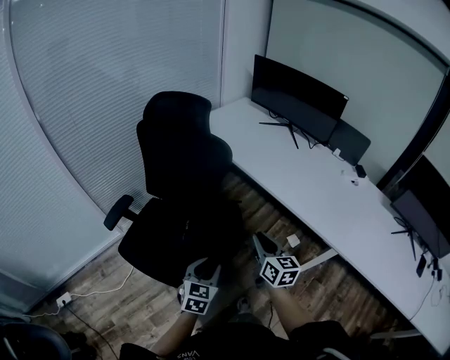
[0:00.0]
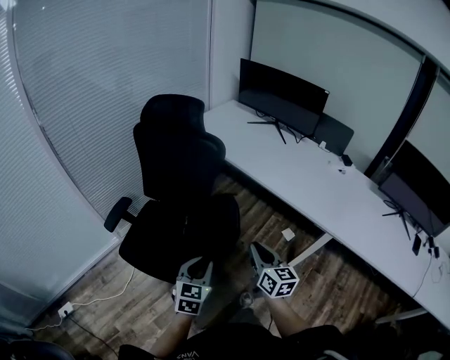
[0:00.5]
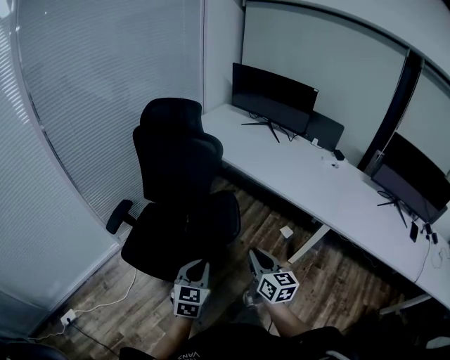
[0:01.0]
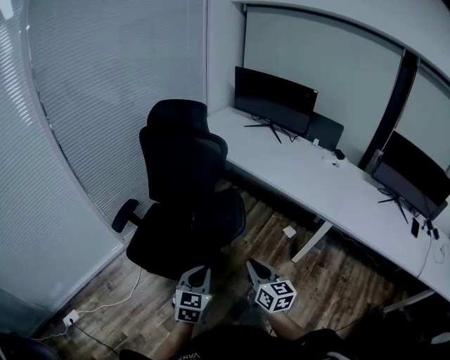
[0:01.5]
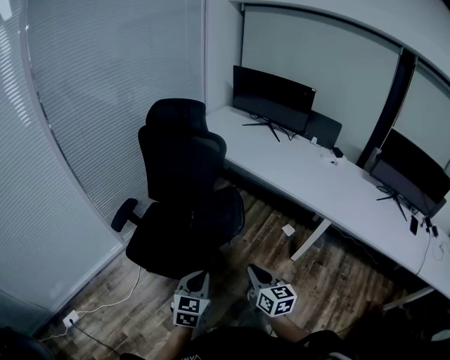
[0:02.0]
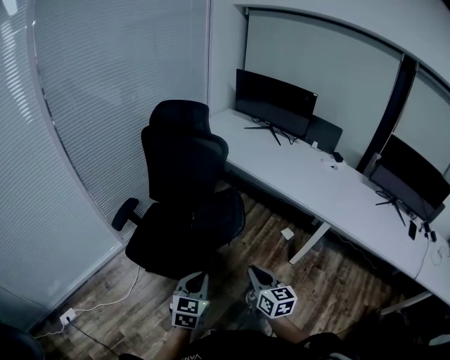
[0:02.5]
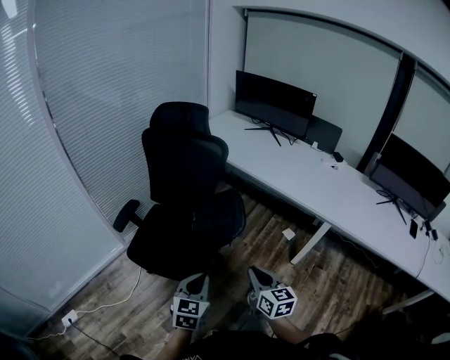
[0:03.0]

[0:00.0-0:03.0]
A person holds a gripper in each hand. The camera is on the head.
0:00.0 to 0:01.5: The left gripper heads backward and to the left, covering approximately 20 cm, and closes its fingers, while the right gripper heads backward, covering roughly 25 cm.
0:01.5 to 0:03.0: There are only small adjustments of the grippers.

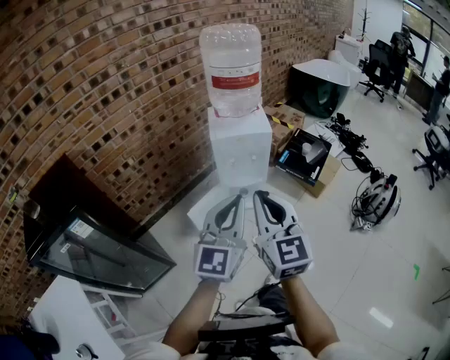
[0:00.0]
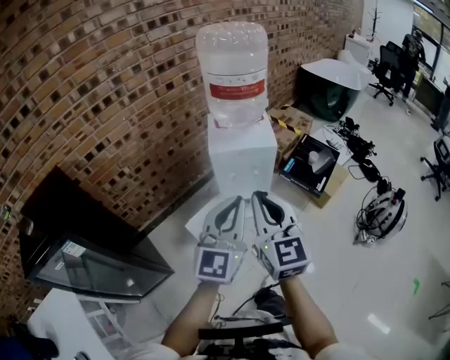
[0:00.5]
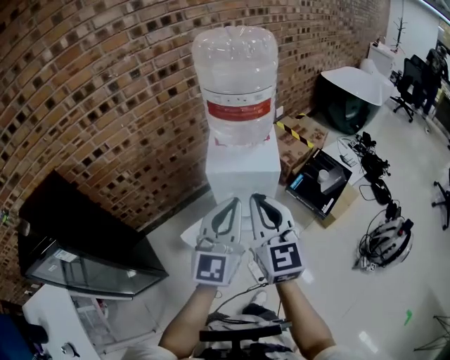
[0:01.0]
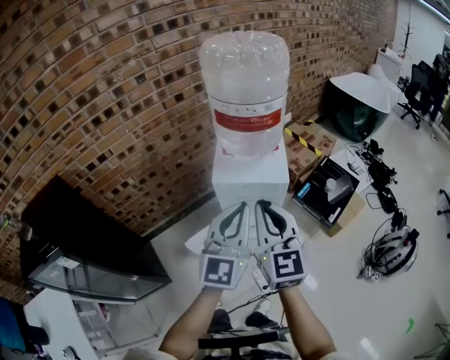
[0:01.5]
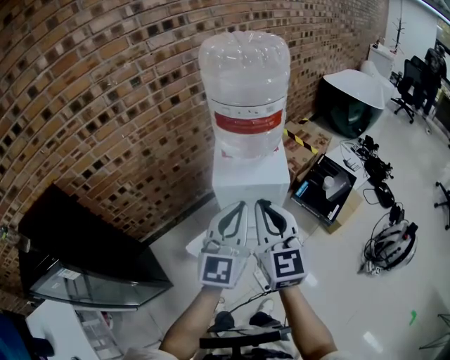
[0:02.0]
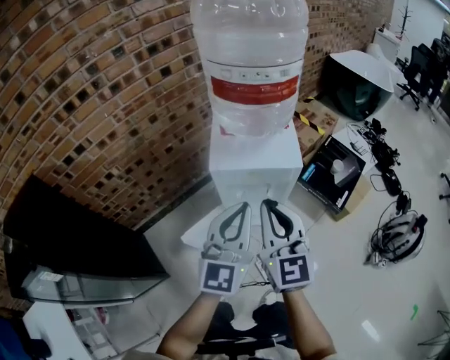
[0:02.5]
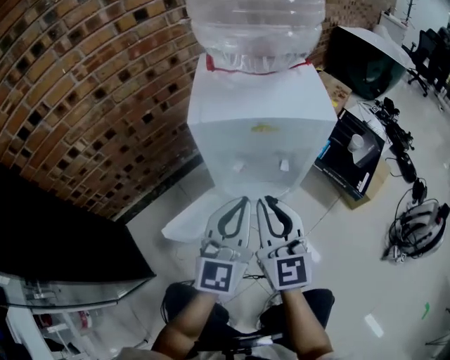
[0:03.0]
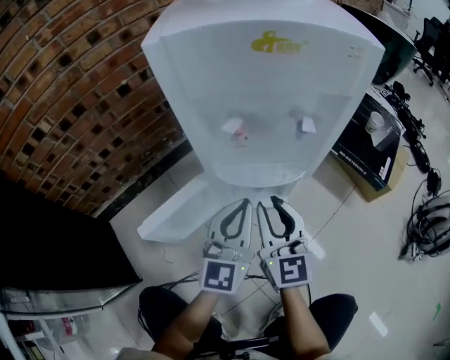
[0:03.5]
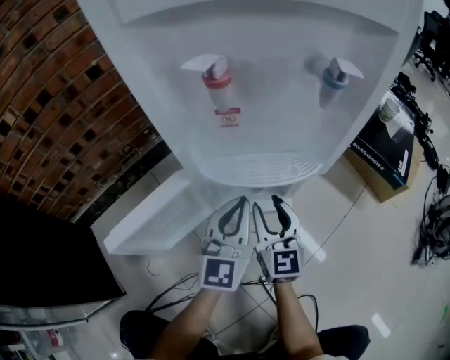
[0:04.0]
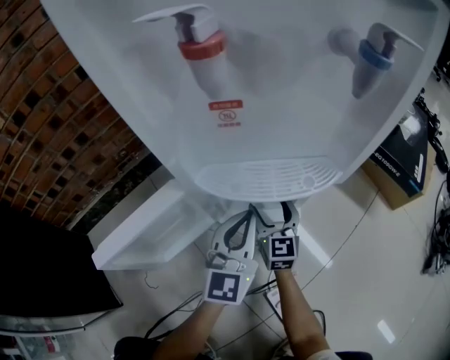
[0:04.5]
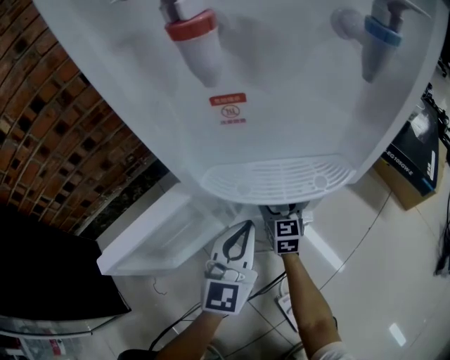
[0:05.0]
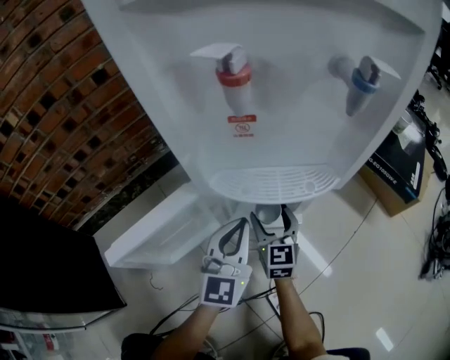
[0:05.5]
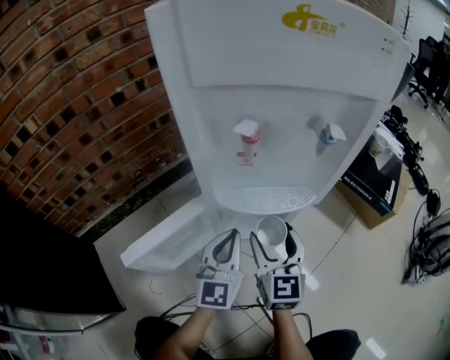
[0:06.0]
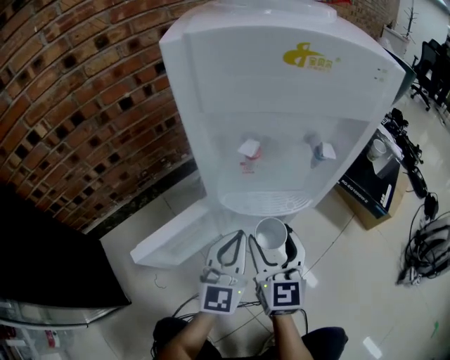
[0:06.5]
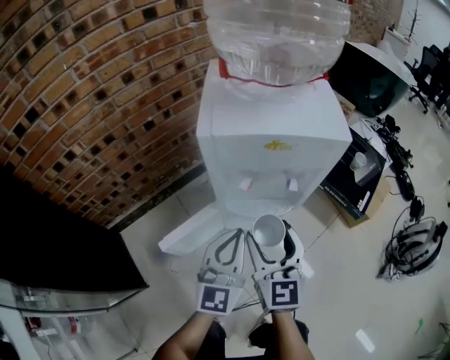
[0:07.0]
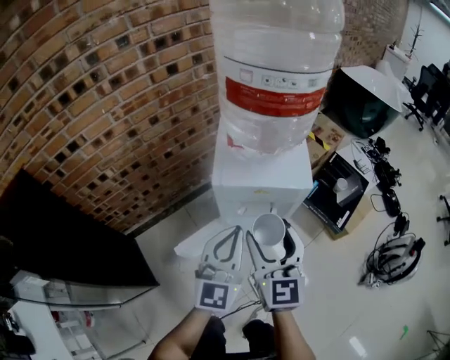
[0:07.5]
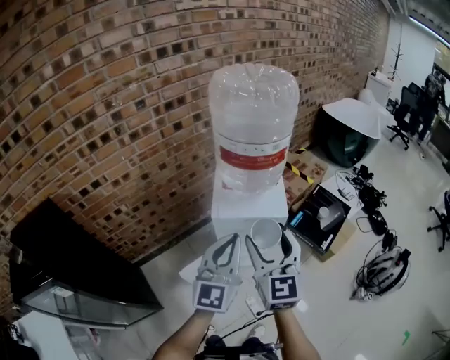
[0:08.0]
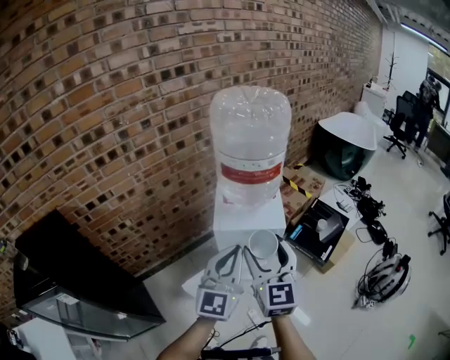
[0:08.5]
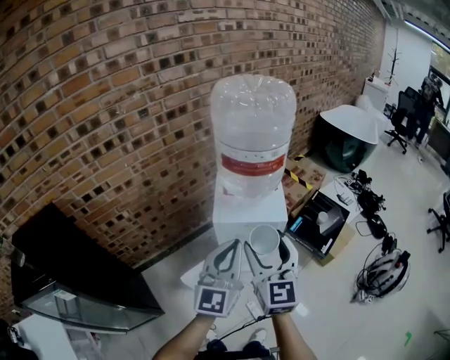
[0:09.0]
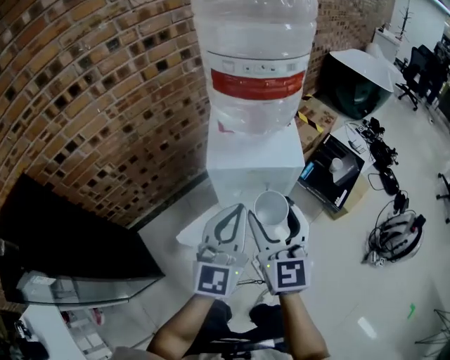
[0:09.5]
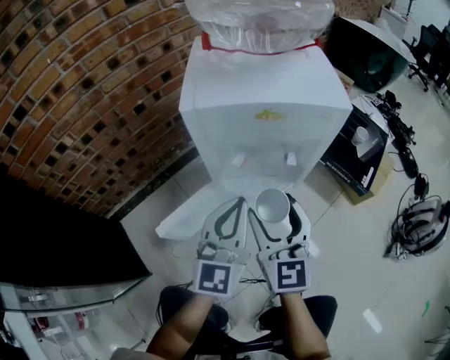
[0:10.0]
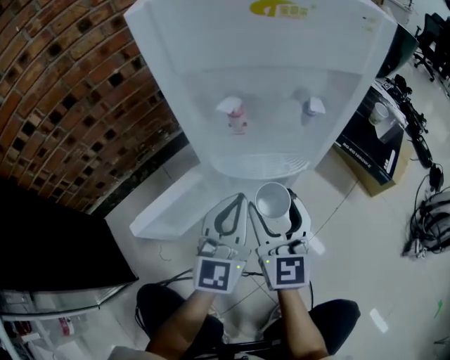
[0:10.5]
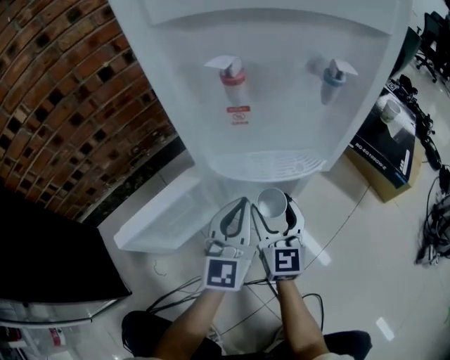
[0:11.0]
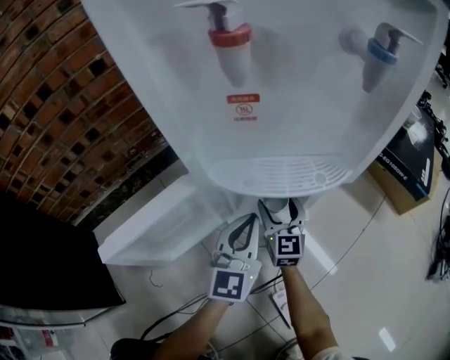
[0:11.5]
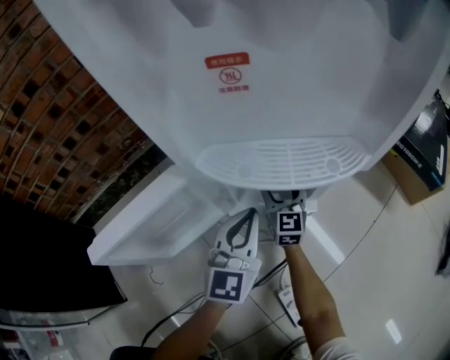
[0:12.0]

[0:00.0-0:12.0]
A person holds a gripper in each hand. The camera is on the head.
0:00.0 to 0:02.0: Both grippers travel together forward, roughly 25 cm.
0:02.0 to 0:04.0: The two grippers go some 70 cm downward. The right gripper opens up.
0:04.0 to 0:06.0: The left gripper reaches roughly 10 cm downward, then returns; the right gripper travels downward and back again, about 15 cm each way, and opens.
0:06.0 to 0:08.0: Both grippers travel together upward, roughly 60 cm.
0:08.0 to 0:10.0: The two grippers go some 35 cm downward.
0:10.0 to 0:12.0: The right gripper is displaced downward and forward by about 50 cm, while the left gripper is displaced downward by some 40 cm.

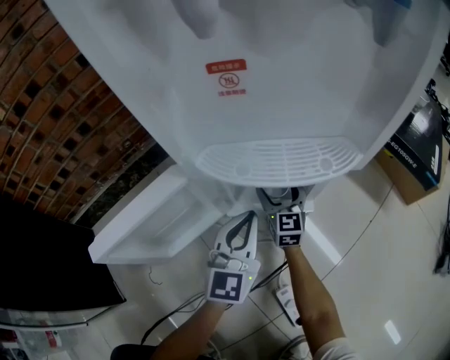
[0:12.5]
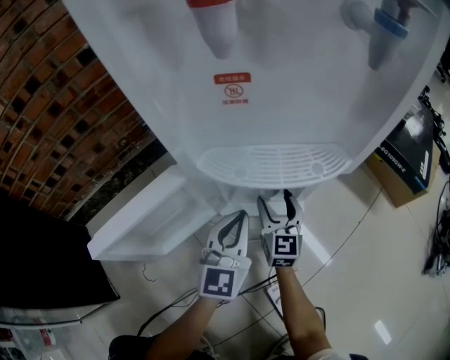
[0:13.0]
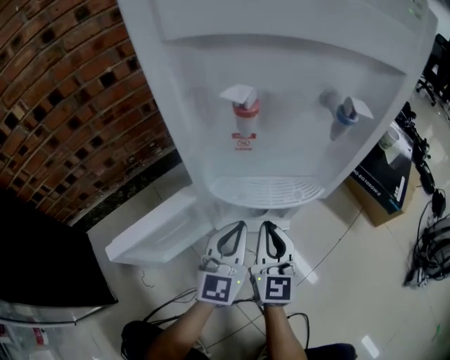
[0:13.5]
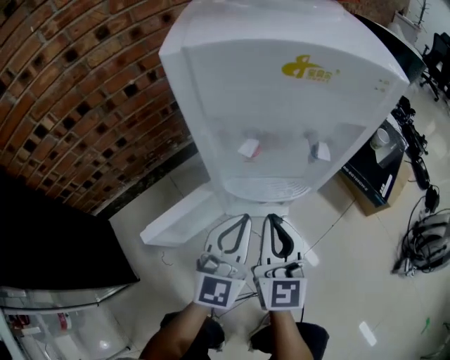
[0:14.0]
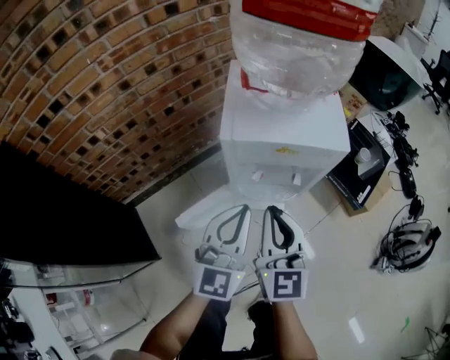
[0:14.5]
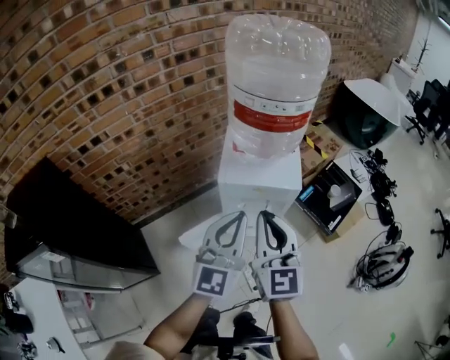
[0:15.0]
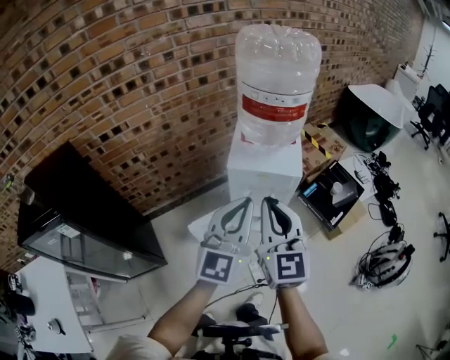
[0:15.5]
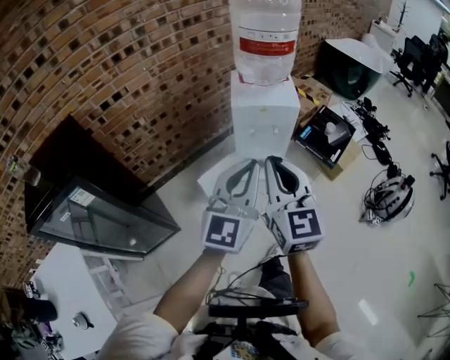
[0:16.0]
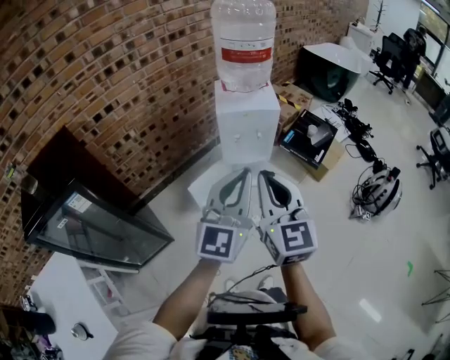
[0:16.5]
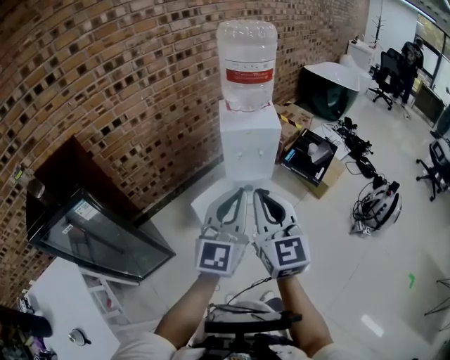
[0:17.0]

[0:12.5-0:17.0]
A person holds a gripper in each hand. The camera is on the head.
0:12.5 to 0:14.5: The grippers both shift upward by roughly 60 cm. The right gripper closes its fingers.
0:14.5 to 0:17.0: Both grippers travel together backward and upward, some 40 cm.

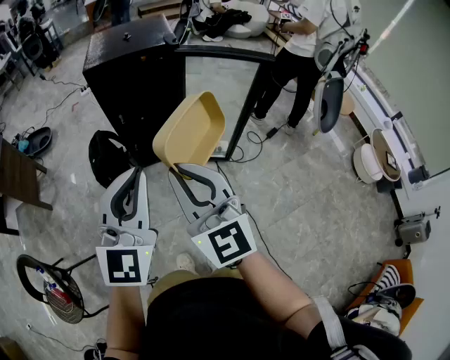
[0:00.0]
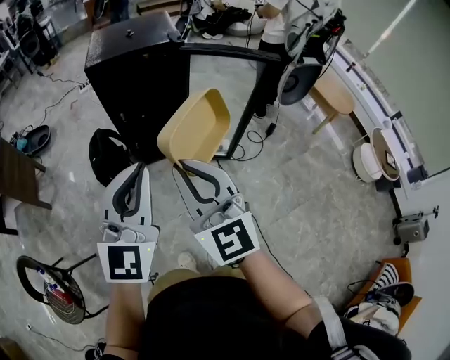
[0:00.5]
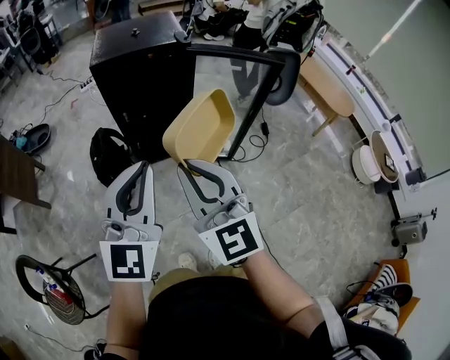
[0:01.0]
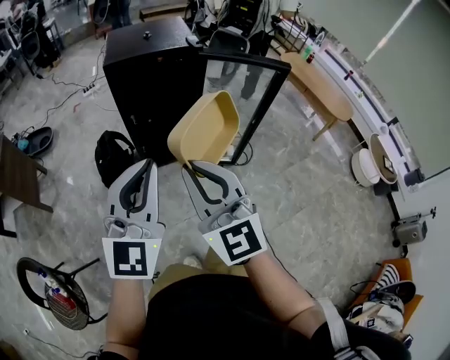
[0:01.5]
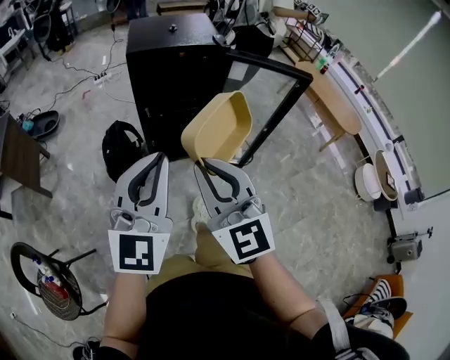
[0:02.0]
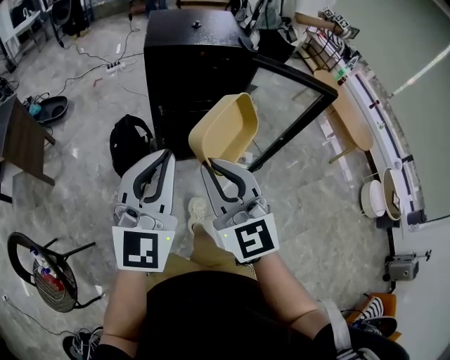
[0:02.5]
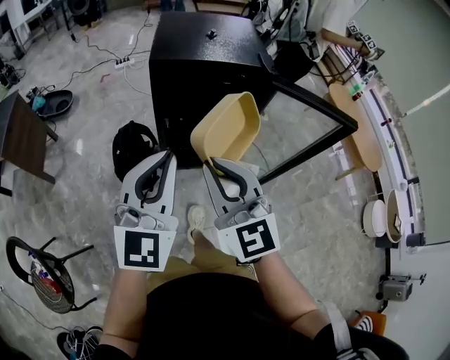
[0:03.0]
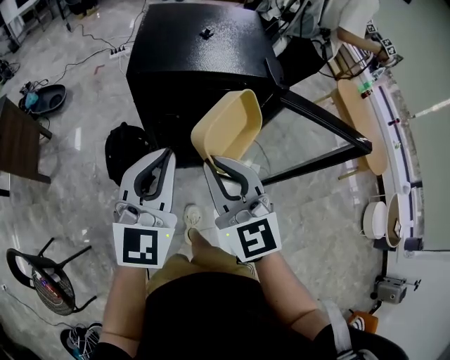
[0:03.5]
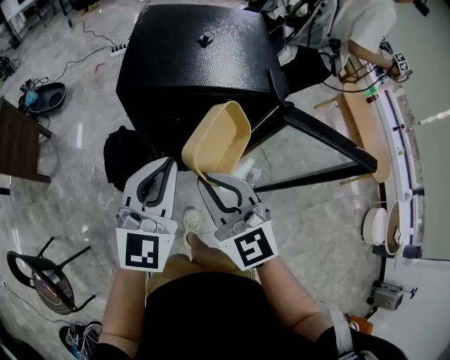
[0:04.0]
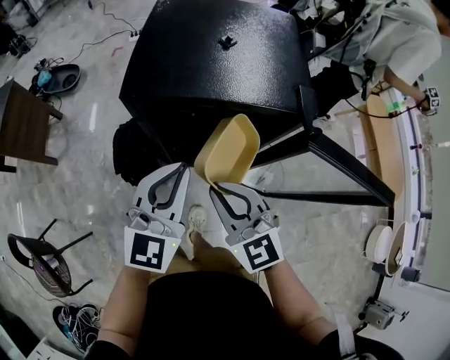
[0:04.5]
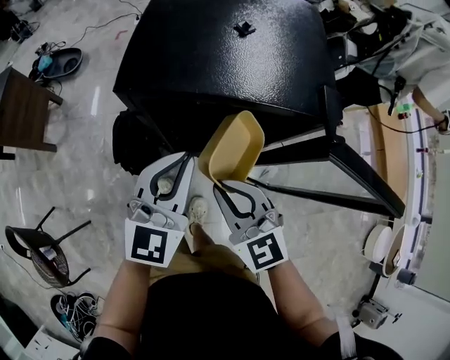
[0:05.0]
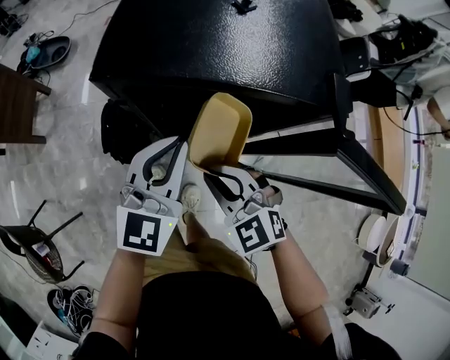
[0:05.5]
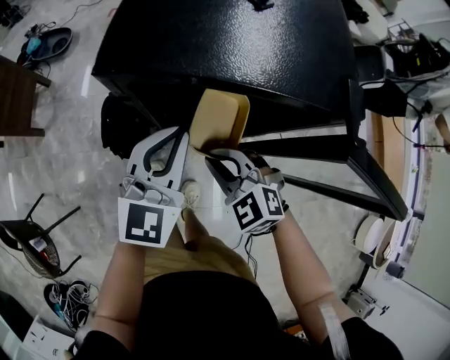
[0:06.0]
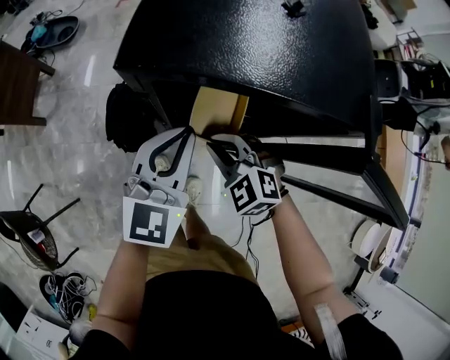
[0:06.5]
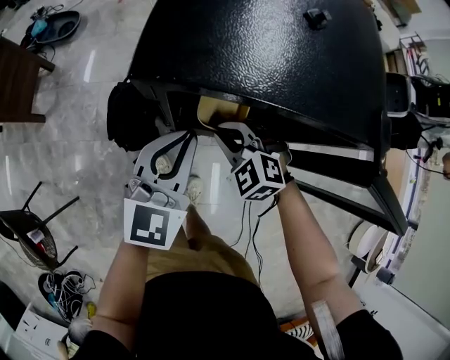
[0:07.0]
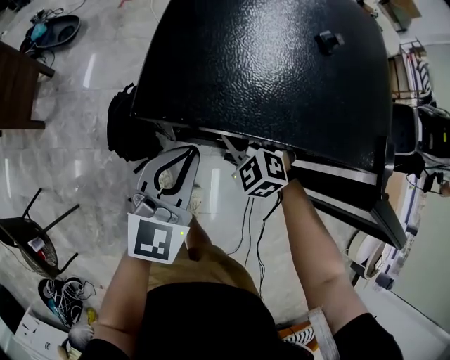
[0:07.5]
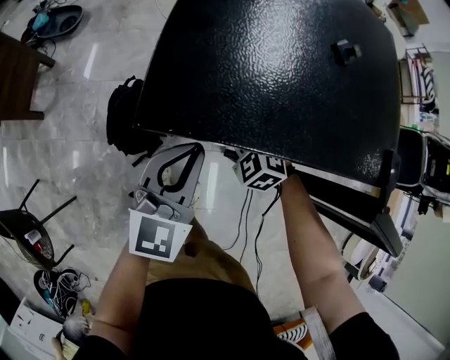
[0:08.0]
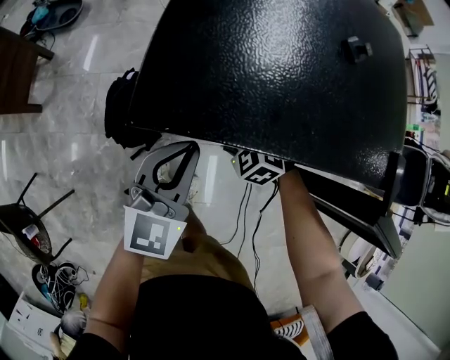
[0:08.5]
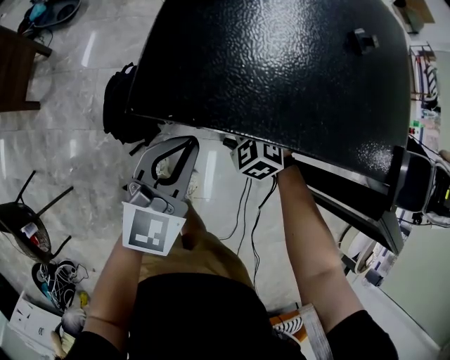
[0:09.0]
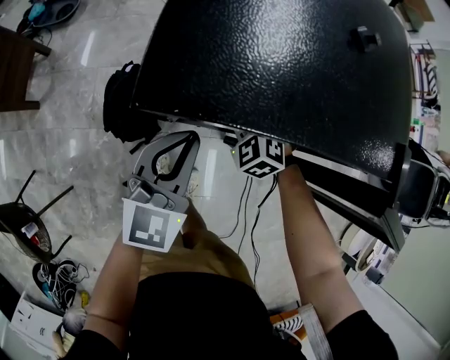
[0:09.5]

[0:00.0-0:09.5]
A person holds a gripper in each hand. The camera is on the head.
0:00.0 to 0:02.0: The grippers both shift to the left by approximately 10 cm.
0:02.0 to 0:04.0: The left gripper shifts about 35 cm forward; the right gripper shifts roughly 35 cm forward and downward, and changes its angle by approximately 30 degrees.
0:04.0 to 0:05.5: The grippers both shift downward and forward by about 15 cm. The right gripper swivels some 20 degrees.
0:05.5 to 0:07.5: The left gripper heads to the left, downward and forward, covering approximately 10 cm. The right gripper heads forward and downward, covering approximately 20 cm, and turns by approximately 20 degrees.
0:07.5 to 0:09.5: The right gripper shifts by about 5 cm.
